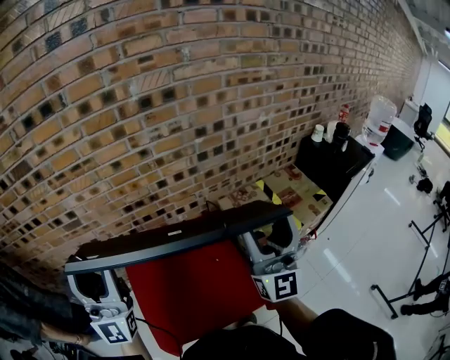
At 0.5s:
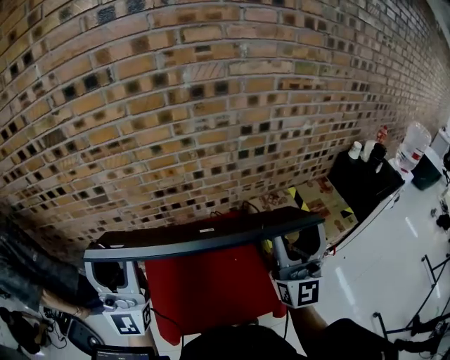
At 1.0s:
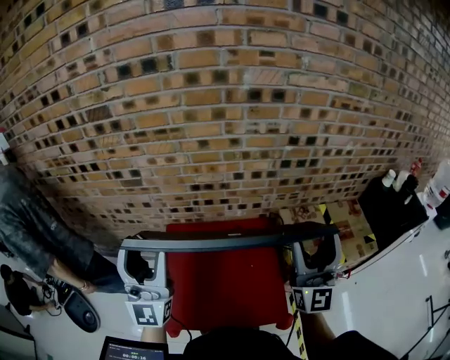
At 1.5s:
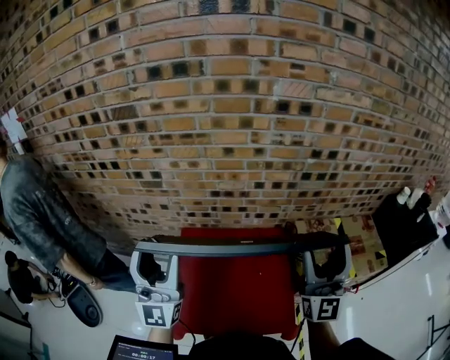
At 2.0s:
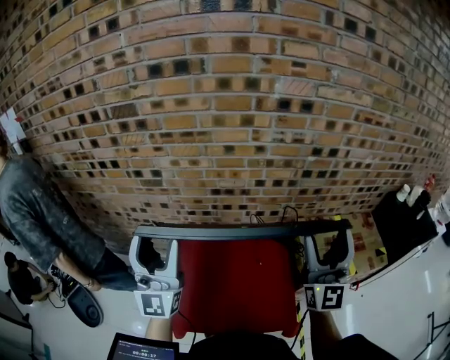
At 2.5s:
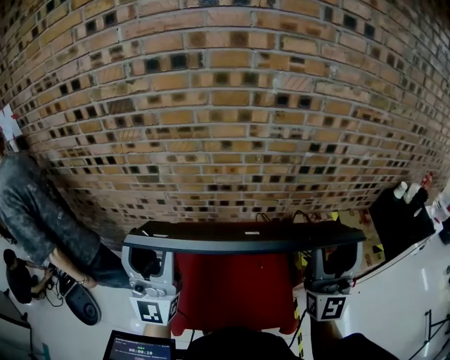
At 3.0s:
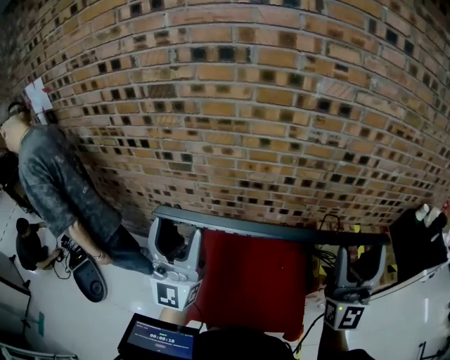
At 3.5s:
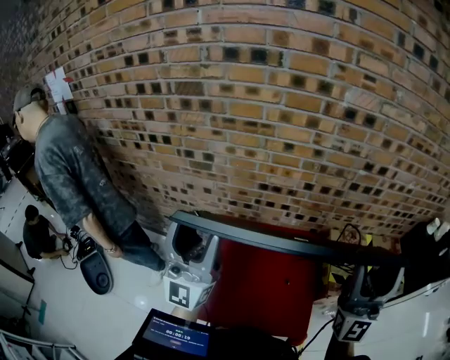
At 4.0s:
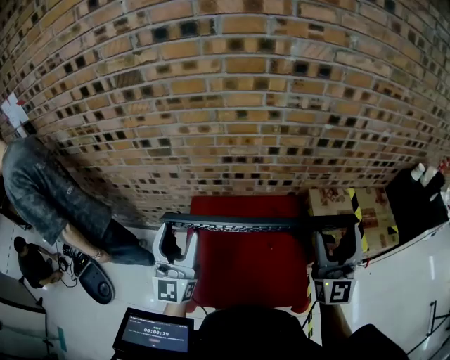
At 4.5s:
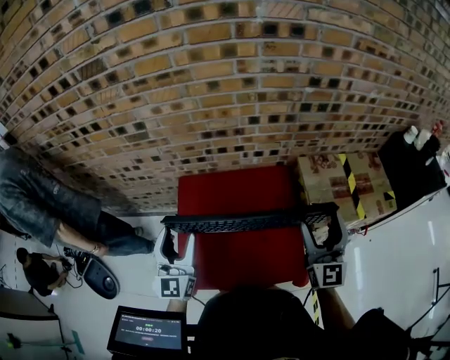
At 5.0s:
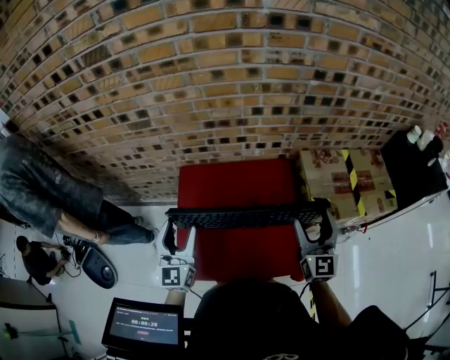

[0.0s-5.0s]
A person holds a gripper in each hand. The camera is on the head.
0.0s to 2.5s: The grippers both shift to the left by approximately 5 cm.
2.5s to 5.0s: Both grippers move downward, about 25 cm. The right gripper tilts its fingers about 40 degrees downward. The left gripper points its fingers some 40 degrees further downward.

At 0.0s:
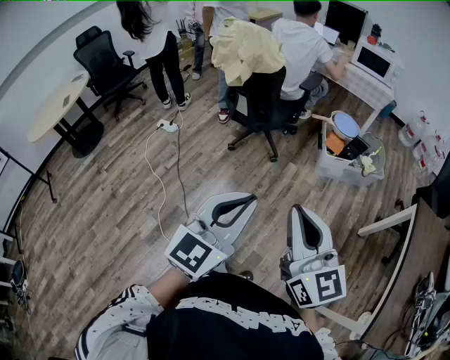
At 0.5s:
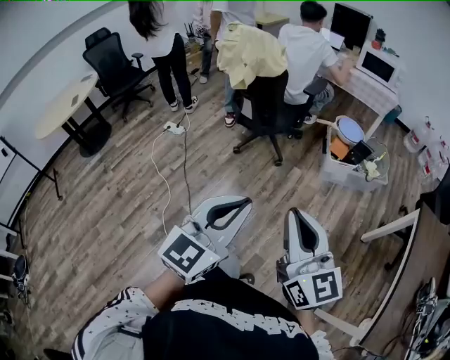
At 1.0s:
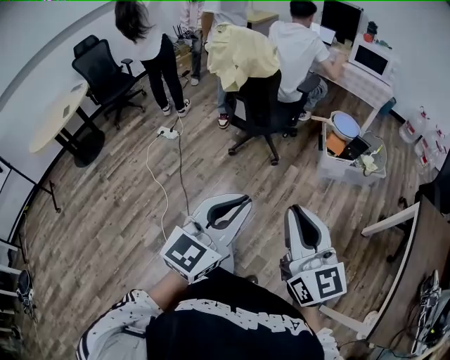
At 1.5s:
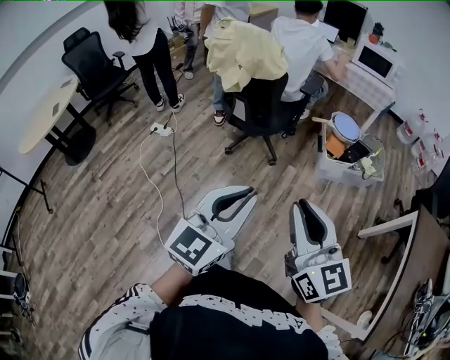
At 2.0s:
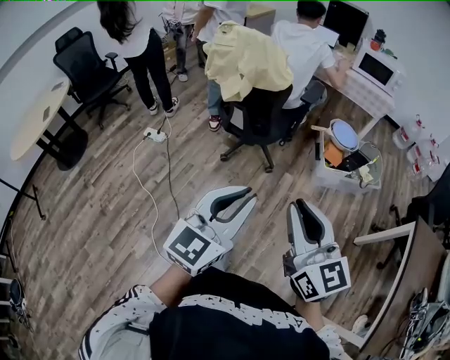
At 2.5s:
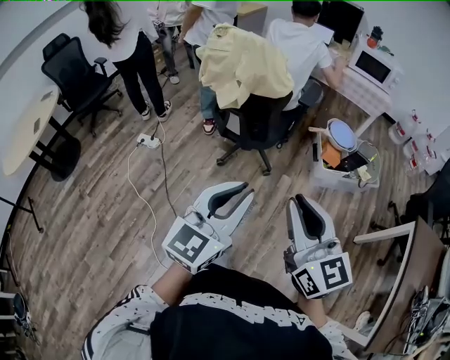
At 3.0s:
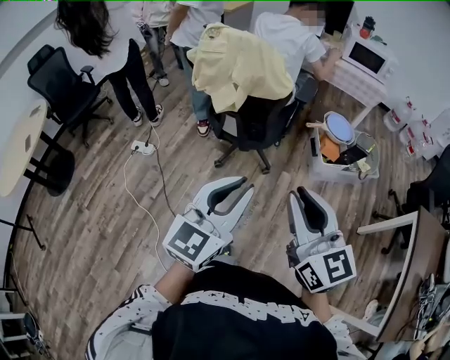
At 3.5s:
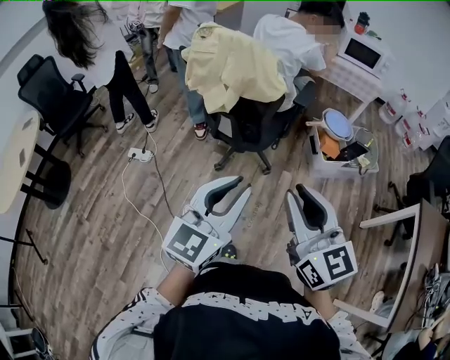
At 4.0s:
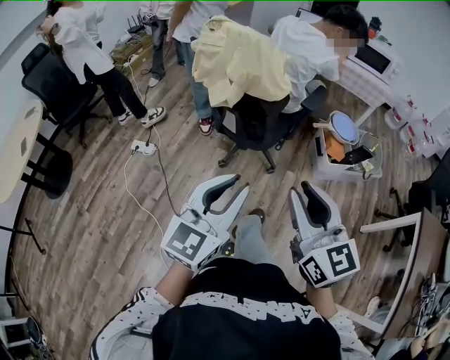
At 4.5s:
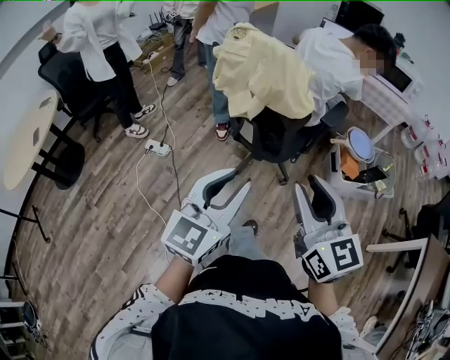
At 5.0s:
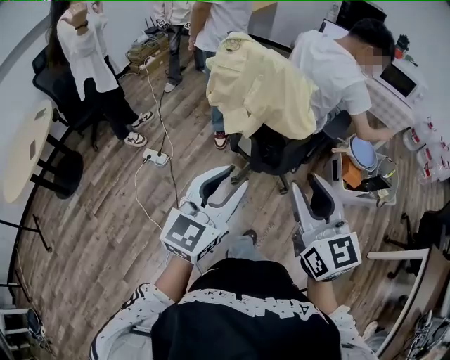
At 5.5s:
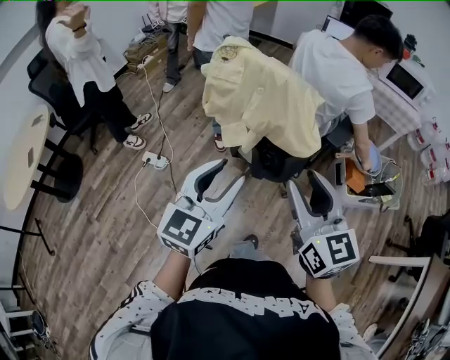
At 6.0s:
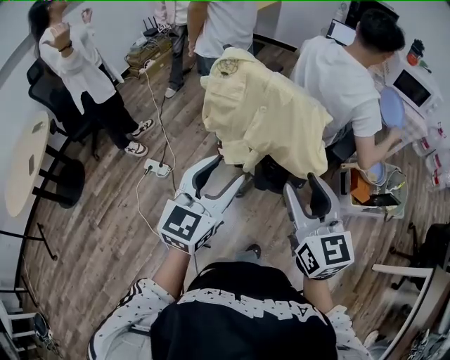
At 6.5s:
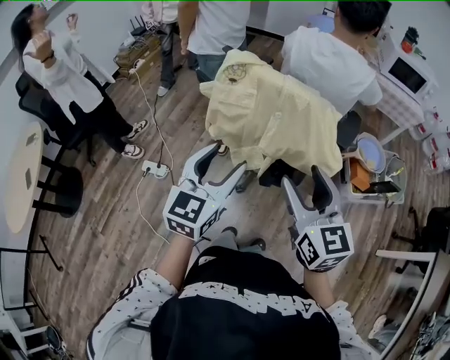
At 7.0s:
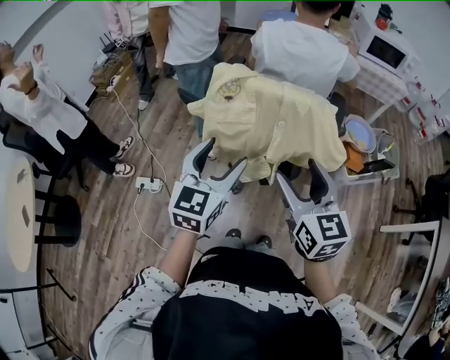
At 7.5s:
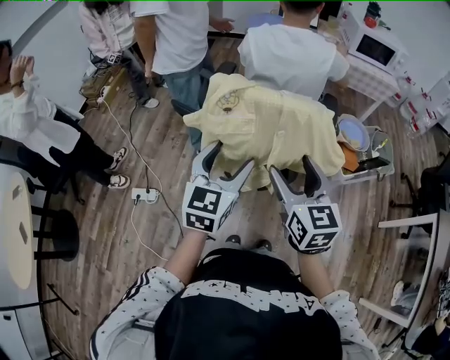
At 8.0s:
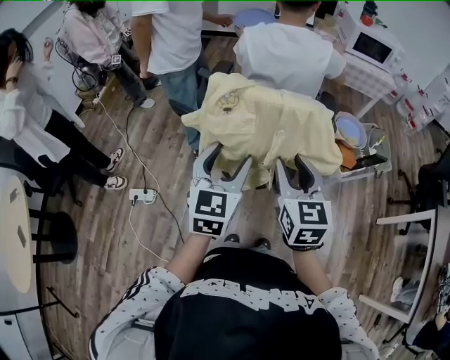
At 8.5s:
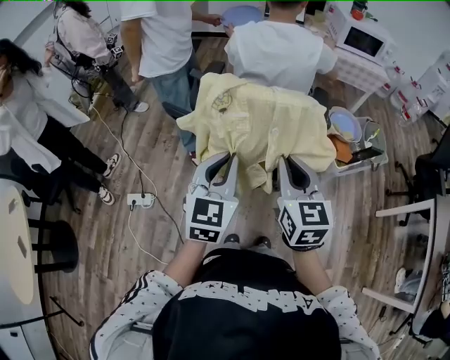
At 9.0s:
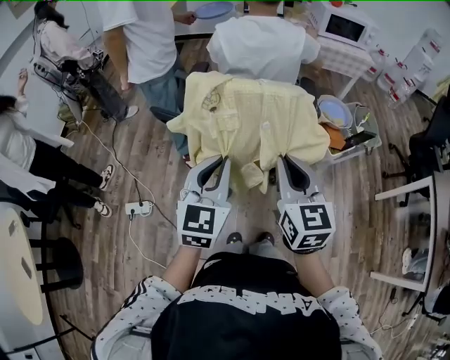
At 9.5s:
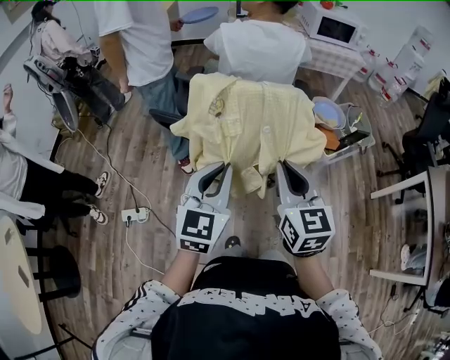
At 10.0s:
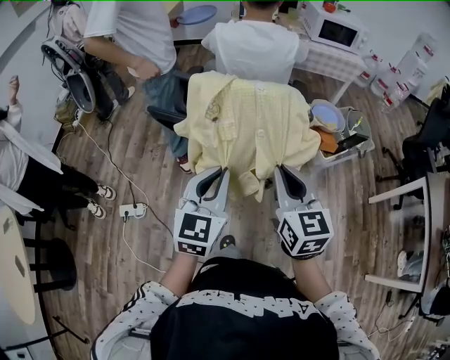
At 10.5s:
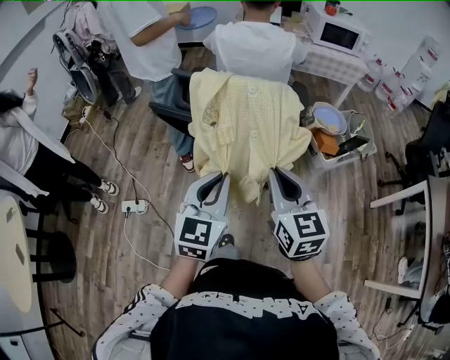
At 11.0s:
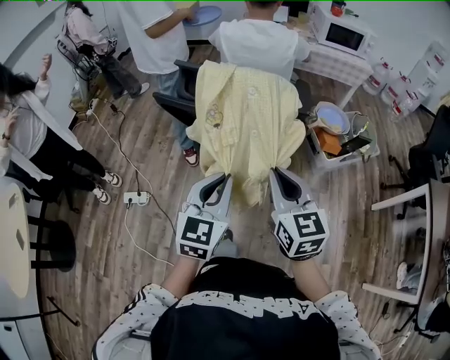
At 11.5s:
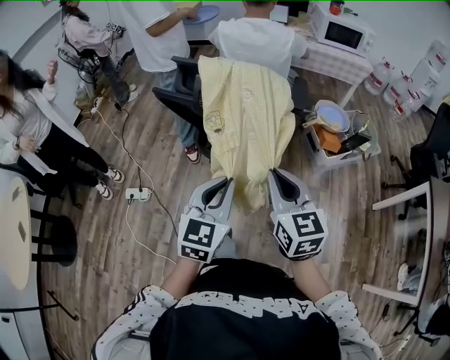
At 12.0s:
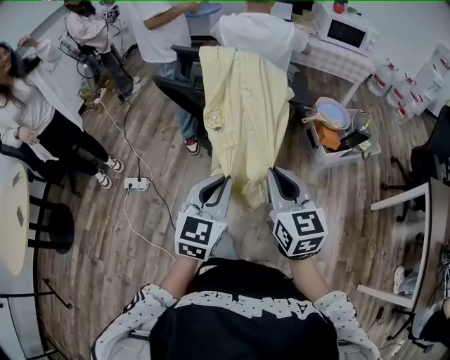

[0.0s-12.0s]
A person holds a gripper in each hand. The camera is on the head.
0.0s to 2.0s: The grippers both shift forward and to the left by roughly 20 cm.
2.0s to 4.0s: The left gripper heads to the left and forward, covering approximately 20 cm. Meanwhile the right gripper travels forward and to the left by roughly 20 cm.
4.0s to 6.0s: Both grippers travel together forward, some 30 cm. The left gripper opens.
6.0s to 8.0s: The grippers both shift forward by approximately 10 cm. The right gripper swivels some 30 degrees, and opens, then closes once more.
8.0s to 10.0s: Both grippers travel together backward, approximately 5 cm. The left gripper closes up. Meanwhile the right gripper closes up.
10.0s to 12.0s: Both grippers travel together backward and to the right, approximately 15 cm.

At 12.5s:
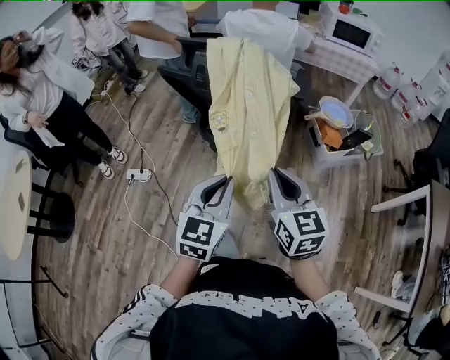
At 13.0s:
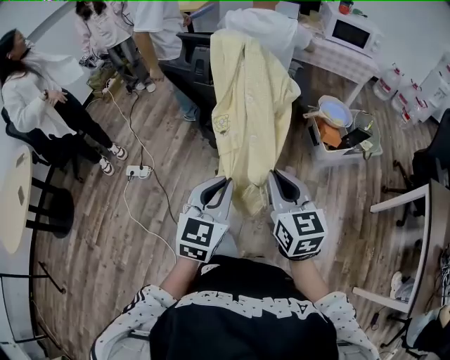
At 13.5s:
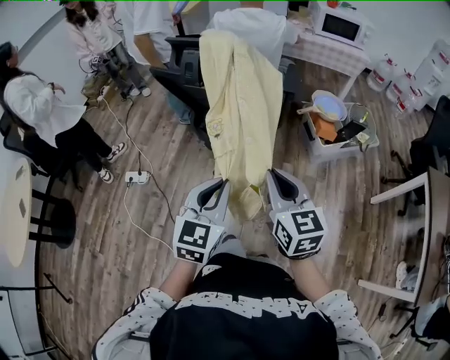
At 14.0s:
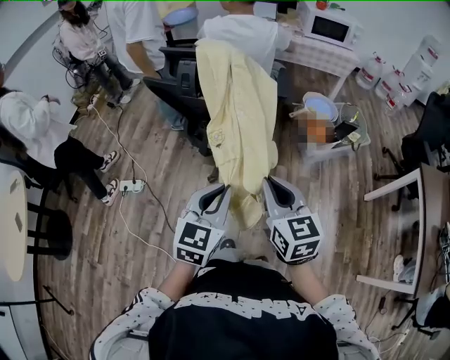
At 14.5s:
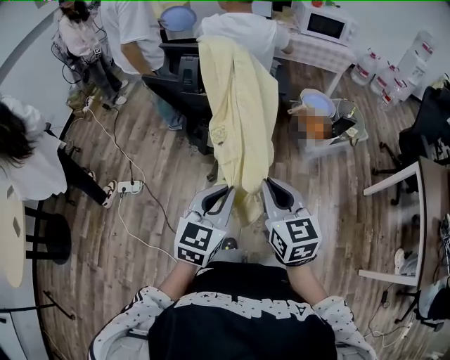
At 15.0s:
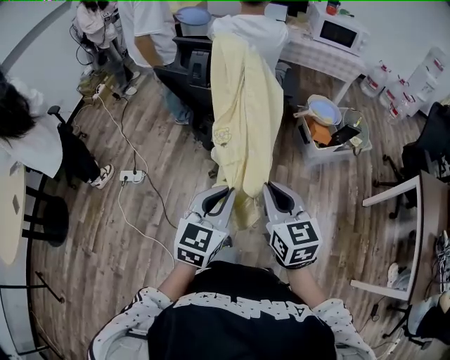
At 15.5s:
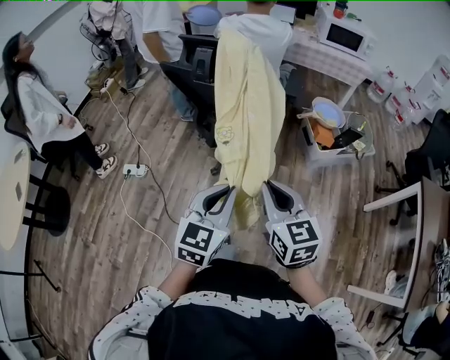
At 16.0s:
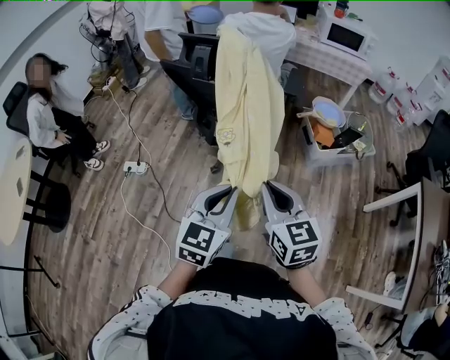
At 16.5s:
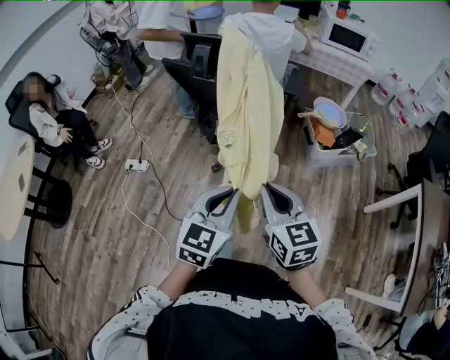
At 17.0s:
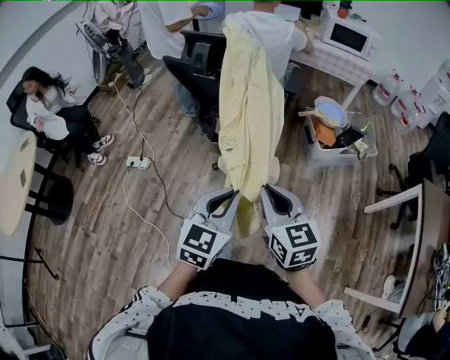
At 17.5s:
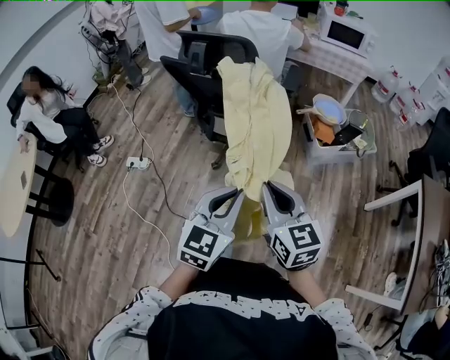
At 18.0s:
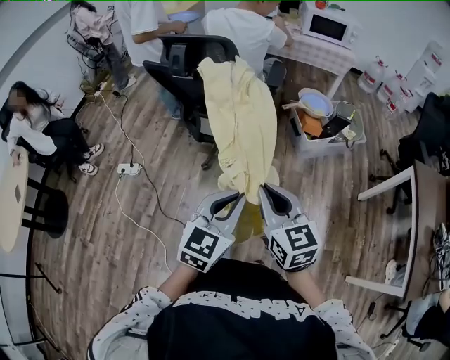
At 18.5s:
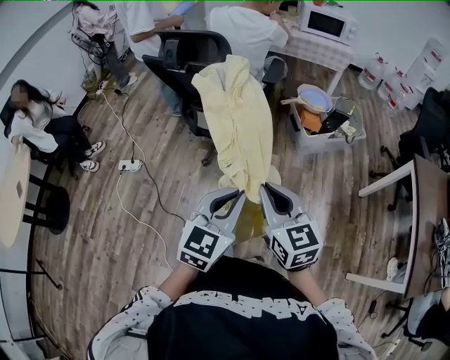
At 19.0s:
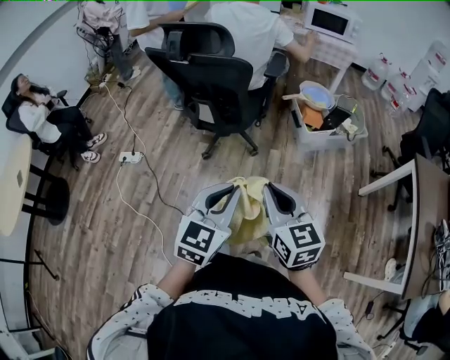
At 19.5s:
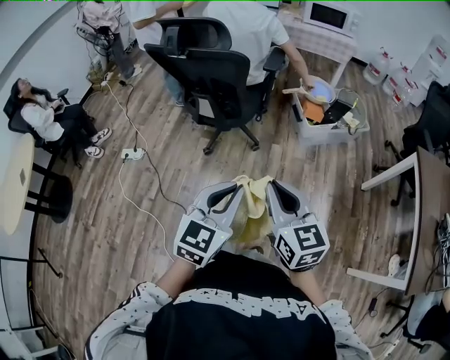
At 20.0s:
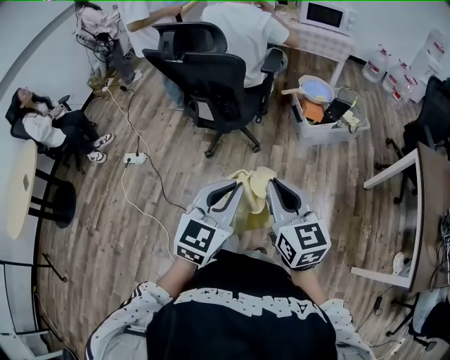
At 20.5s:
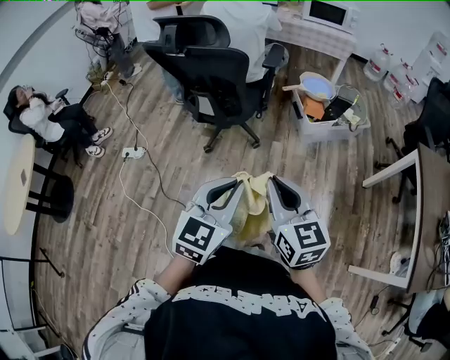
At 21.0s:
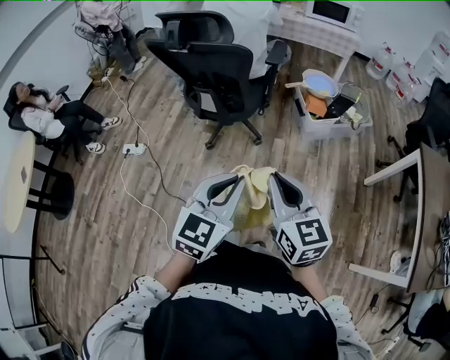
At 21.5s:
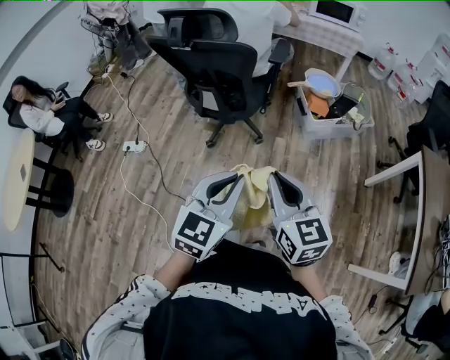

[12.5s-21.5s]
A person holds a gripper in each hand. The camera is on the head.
12.5s to 14.5s: The grippers move only a little.
14.5s to 17.0s: The left gripper travels backward and to the right by about 10 cm, while the right gripper heads backward, covering about 5 cm.
17.0s to 19.5s: The two grippers go some 15 cm to the right and backward.
19.5s to 21.5s: The grippers move only a little.

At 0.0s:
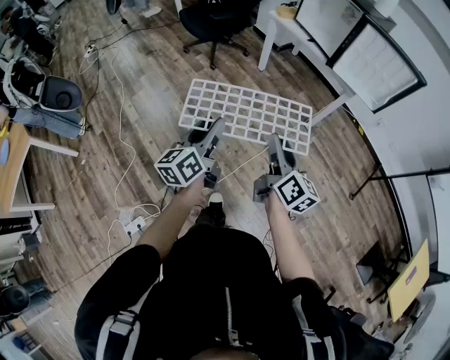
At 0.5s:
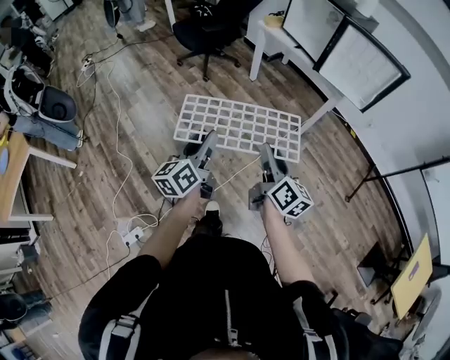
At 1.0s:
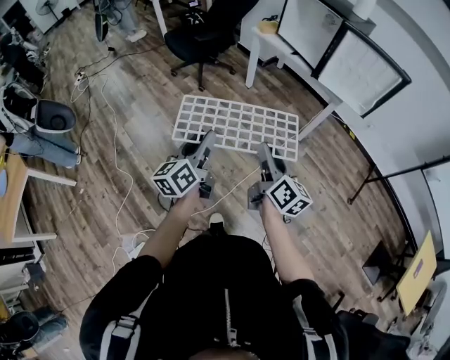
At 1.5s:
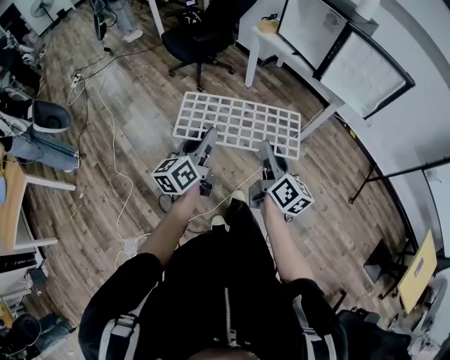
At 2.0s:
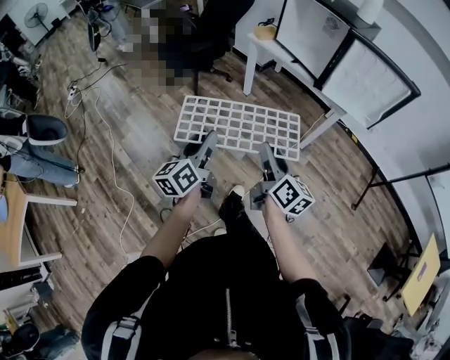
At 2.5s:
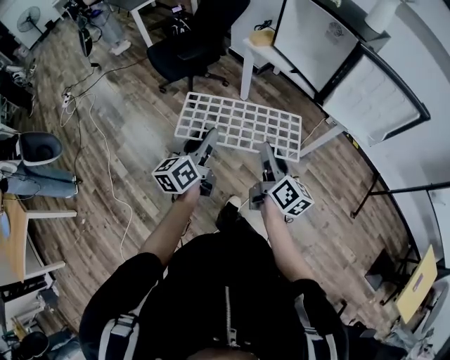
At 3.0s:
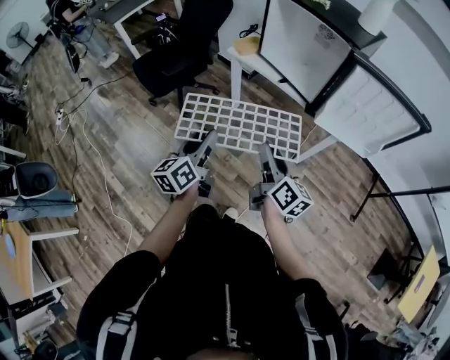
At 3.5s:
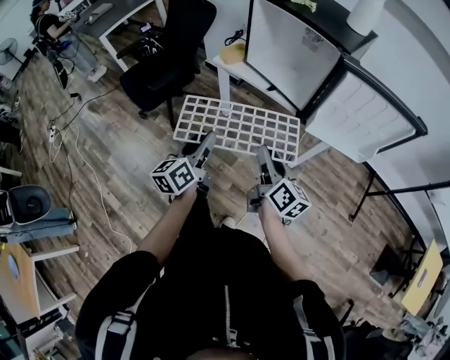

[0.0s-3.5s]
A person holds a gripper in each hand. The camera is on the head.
0.0s to 2.0s: Both grippers move forward, roughly 15 cm.
2.0s to 3.5s: Both grippers move forward, roughly 30 cm.
